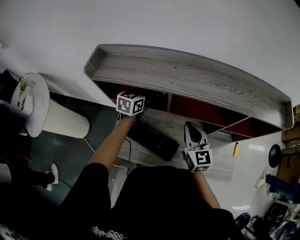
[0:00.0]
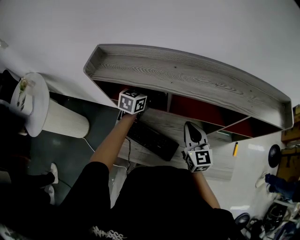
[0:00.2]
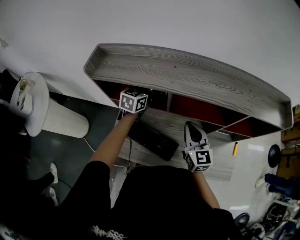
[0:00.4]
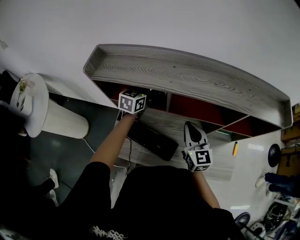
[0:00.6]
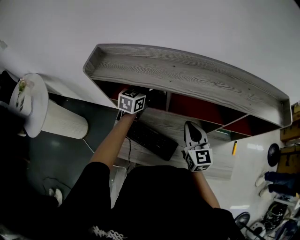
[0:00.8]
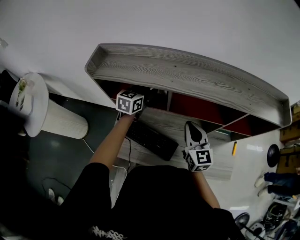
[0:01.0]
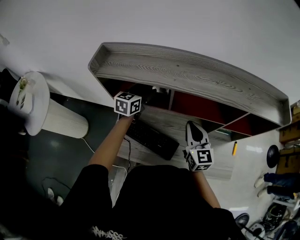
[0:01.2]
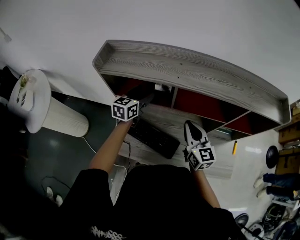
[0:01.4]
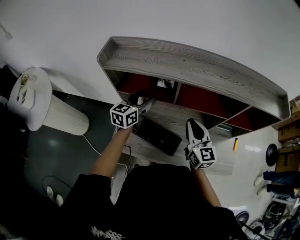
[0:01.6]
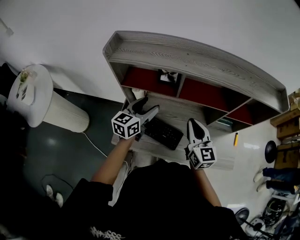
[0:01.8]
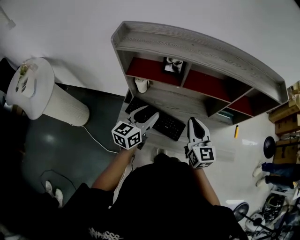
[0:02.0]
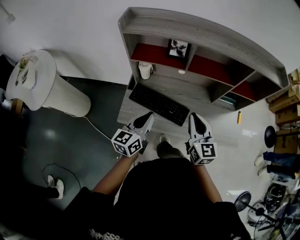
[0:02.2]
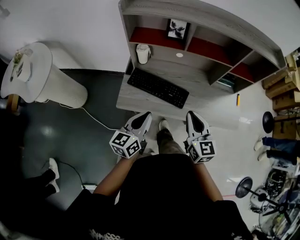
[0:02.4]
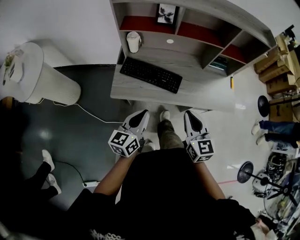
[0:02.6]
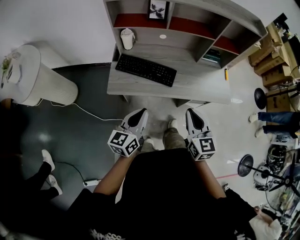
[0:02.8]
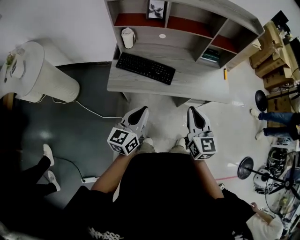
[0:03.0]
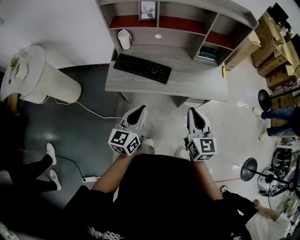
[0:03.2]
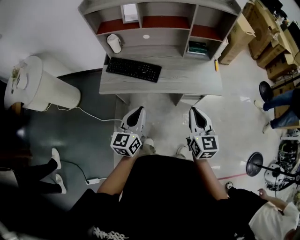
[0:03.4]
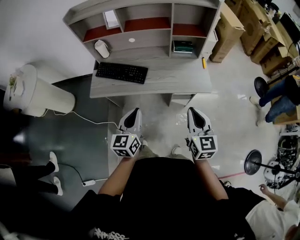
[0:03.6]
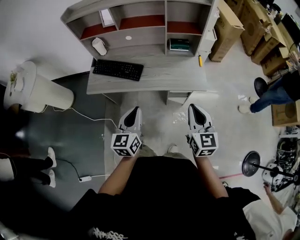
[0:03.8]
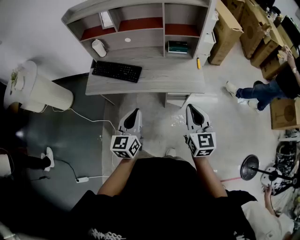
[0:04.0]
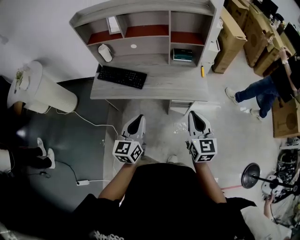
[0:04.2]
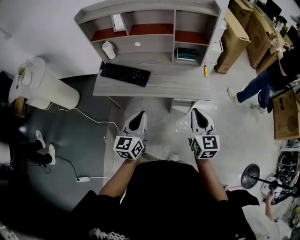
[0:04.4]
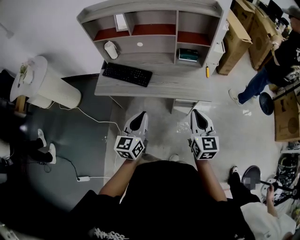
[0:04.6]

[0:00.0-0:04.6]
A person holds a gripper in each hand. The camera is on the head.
0:00.0 to 0:01.6: The left gripper goes about 10 cm backward.
0:01.6 to 0:03.0: Both grippers travel together backward, roughly 40 cm. The left gripper closes up.
0:03.0 to 0:04.6: The two grippers go some 25 cm to the right.

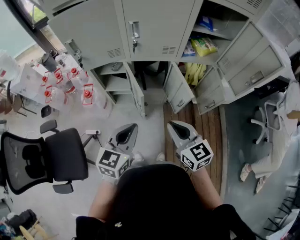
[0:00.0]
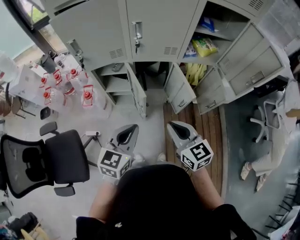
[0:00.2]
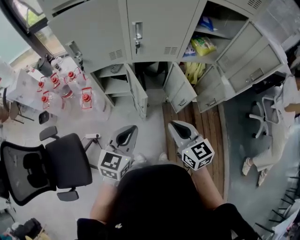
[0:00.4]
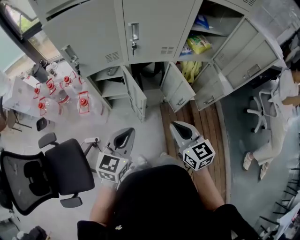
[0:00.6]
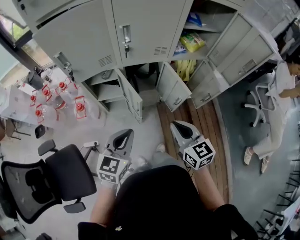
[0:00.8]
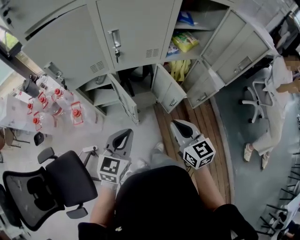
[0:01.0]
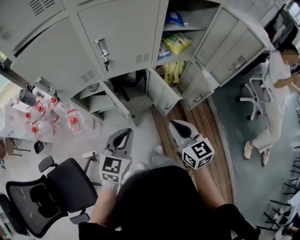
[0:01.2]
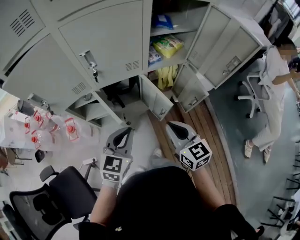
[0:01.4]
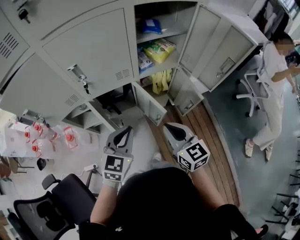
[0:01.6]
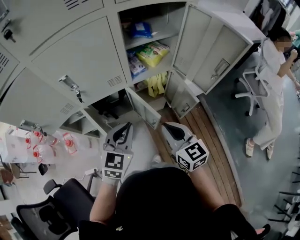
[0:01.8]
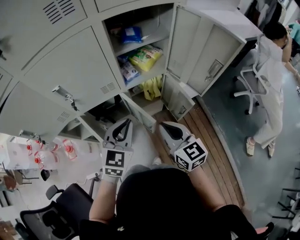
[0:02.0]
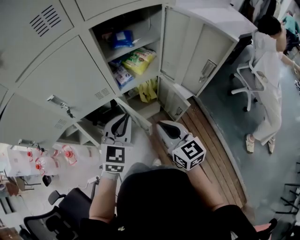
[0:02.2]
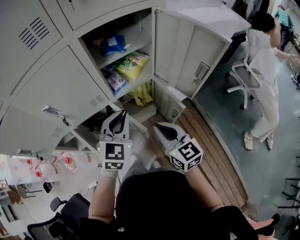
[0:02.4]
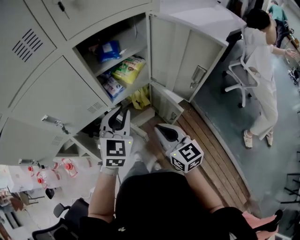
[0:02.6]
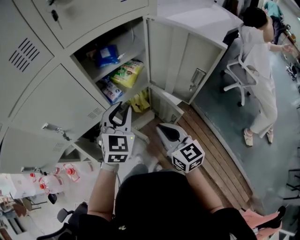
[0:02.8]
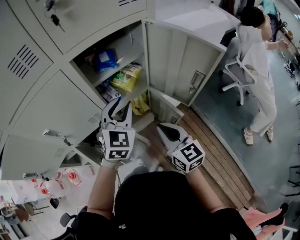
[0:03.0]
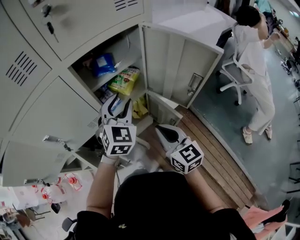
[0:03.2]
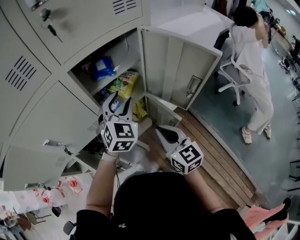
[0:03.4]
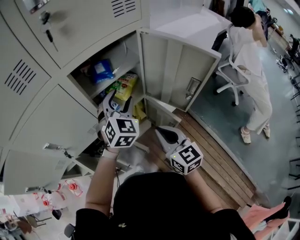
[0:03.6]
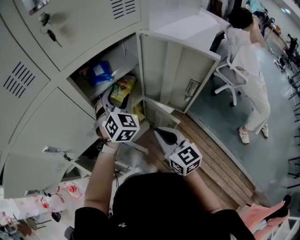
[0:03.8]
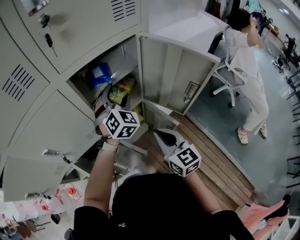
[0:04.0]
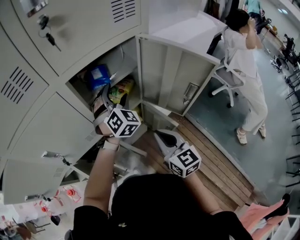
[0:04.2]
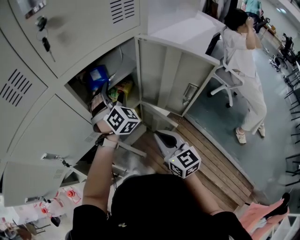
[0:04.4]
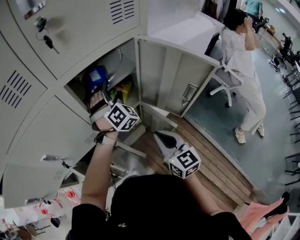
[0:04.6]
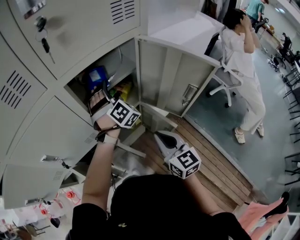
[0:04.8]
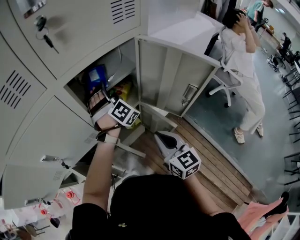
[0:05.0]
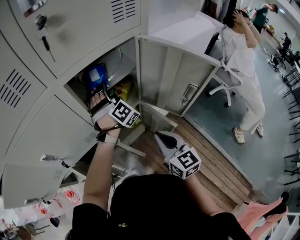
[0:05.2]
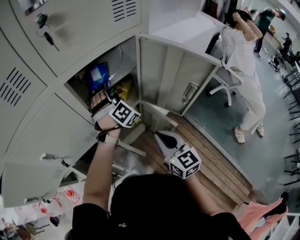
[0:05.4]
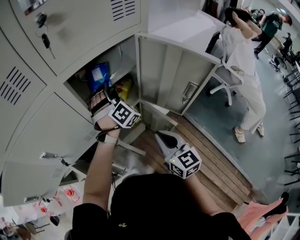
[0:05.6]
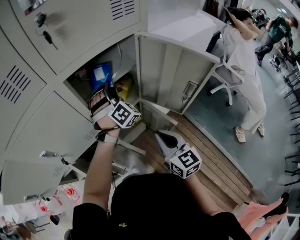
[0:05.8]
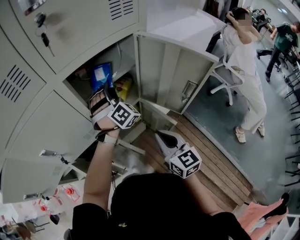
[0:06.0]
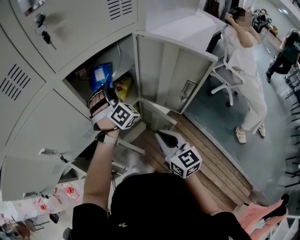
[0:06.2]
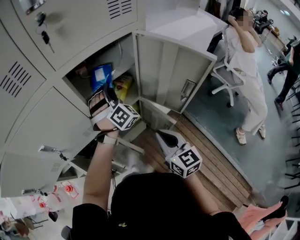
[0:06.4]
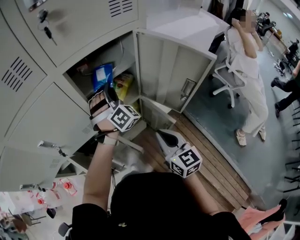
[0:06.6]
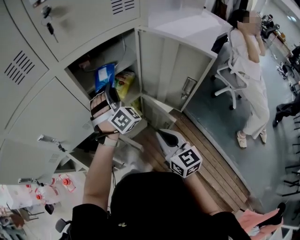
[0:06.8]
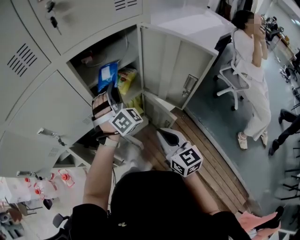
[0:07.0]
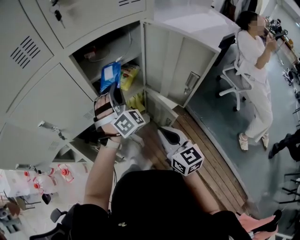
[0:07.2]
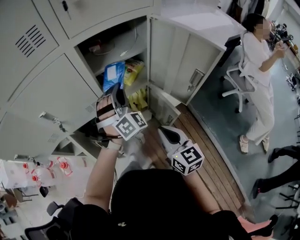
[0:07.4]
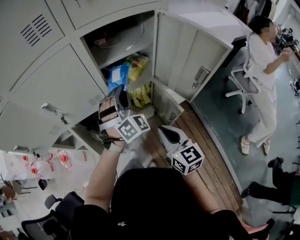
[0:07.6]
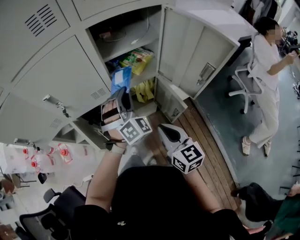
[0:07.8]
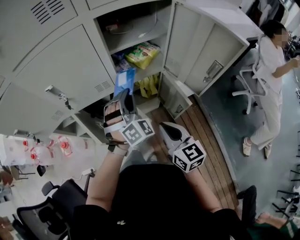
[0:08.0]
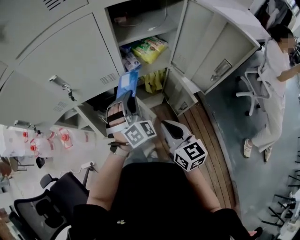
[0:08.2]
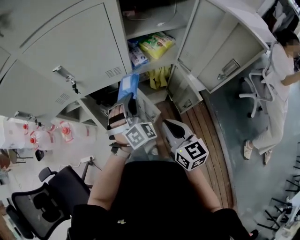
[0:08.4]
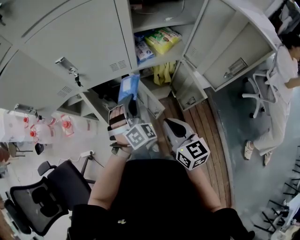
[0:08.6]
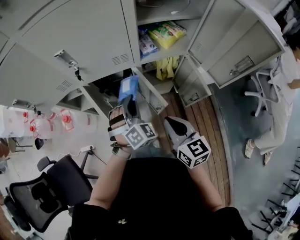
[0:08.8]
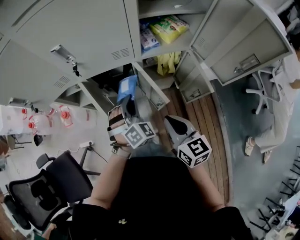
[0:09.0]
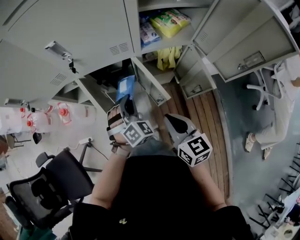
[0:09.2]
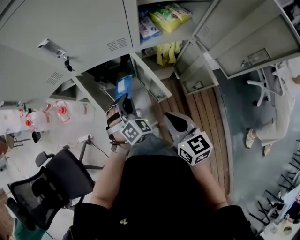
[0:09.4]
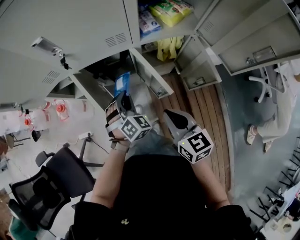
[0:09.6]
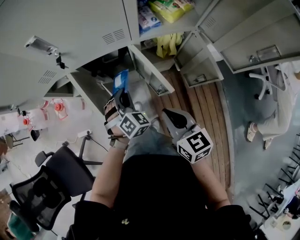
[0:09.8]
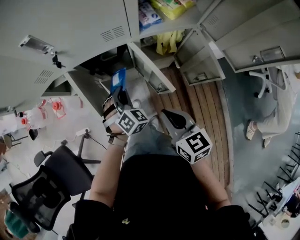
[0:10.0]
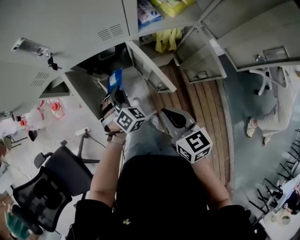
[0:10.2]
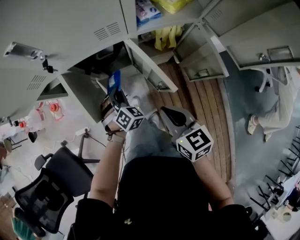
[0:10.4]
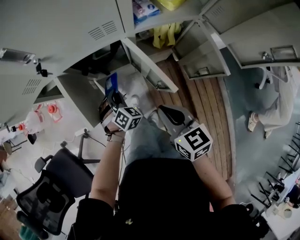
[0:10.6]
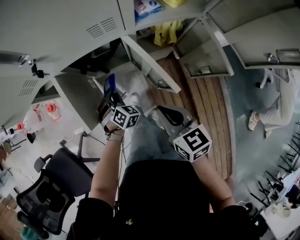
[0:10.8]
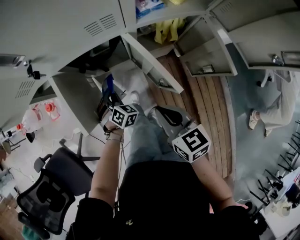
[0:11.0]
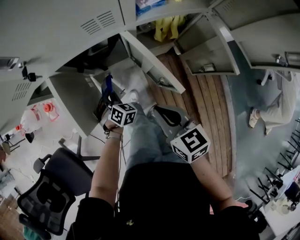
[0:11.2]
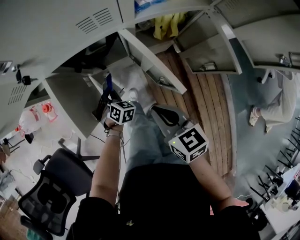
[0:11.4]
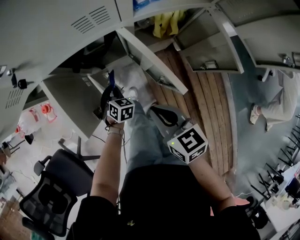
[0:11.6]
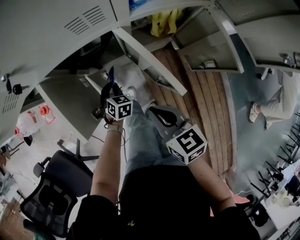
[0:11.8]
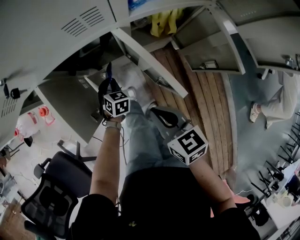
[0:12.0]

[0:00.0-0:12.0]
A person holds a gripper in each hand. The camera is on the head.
0:00.0 to 0:01.6: The two grippers go some 15 cm forward and to the right. The left gripper changes its angle by roughly 20 degrees.
0:01.6 to 0:03.0: The right gripper heads forward and to the right, covering approximately 15 cm; the left gripper goes some 25 cm forward and to the right.
0:03.0 to 0:04.4: The left gripper shifts roughly 15 cm forward, turns by approximately 30 degrees, and opens up.
0:04.4 to 0:06.0: The left gripper closes up.
0:06.0 to 0:07.6: The right gripper travels backward by roughly 5 cm. Meanwhile the left gripper shifts some 15 cm backward.
0:07.6 to 0:09.0: The left gripper goes some 25 cm downward, to the left and backward, and turns by about 20 degrees. The right gripper is displaced to the left and downward by about 15 cm.
0:09.0 to 0:10.4: The left gripper heads downward, covering some 20 cm, while the right gripper travels downward by approximately 10 cm.
0:10.4 to 0:12.0: The right gripper travels downward by roughly 10 cm. Meanwhile the left gripper shifts roughly 15 cm downward, and swivels some 30 degrees.

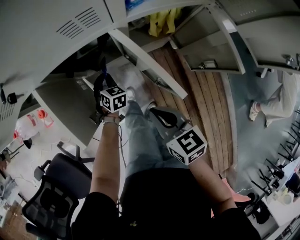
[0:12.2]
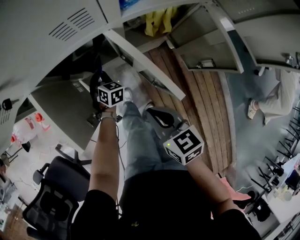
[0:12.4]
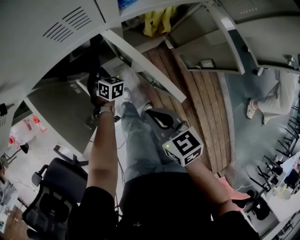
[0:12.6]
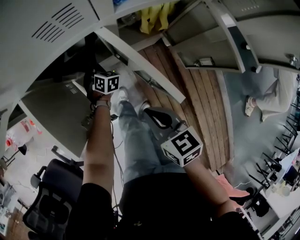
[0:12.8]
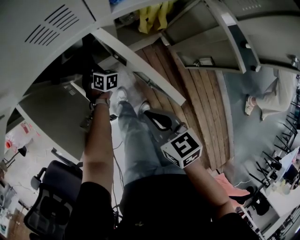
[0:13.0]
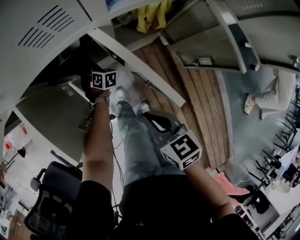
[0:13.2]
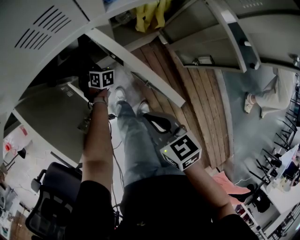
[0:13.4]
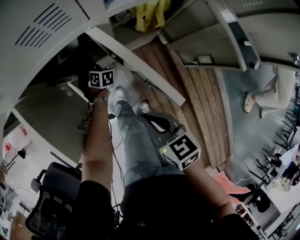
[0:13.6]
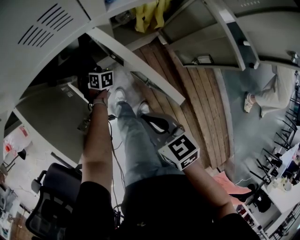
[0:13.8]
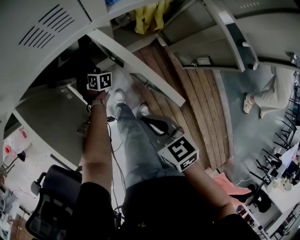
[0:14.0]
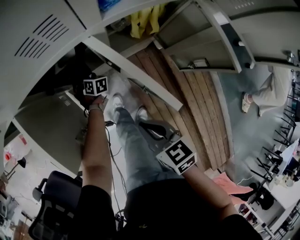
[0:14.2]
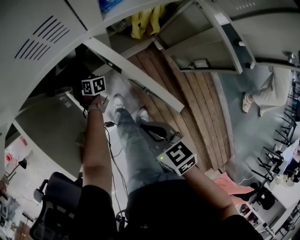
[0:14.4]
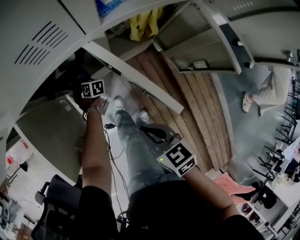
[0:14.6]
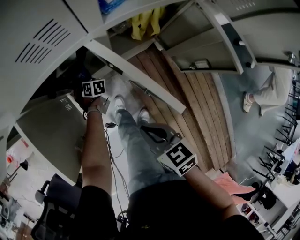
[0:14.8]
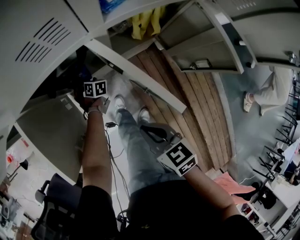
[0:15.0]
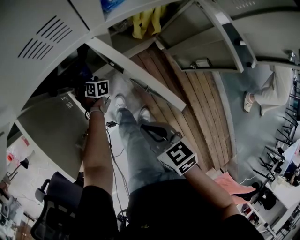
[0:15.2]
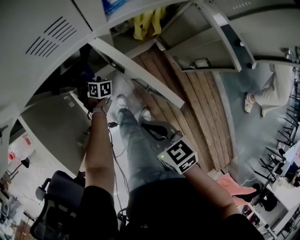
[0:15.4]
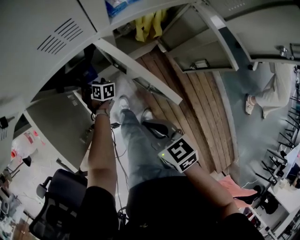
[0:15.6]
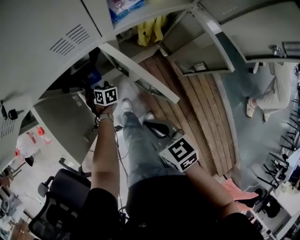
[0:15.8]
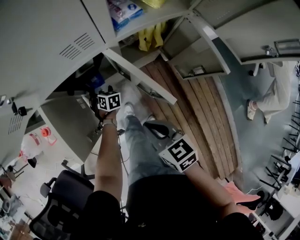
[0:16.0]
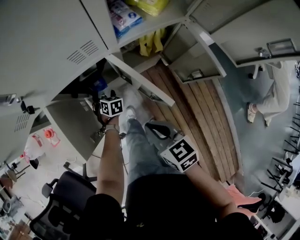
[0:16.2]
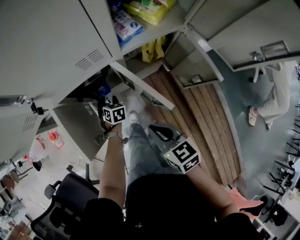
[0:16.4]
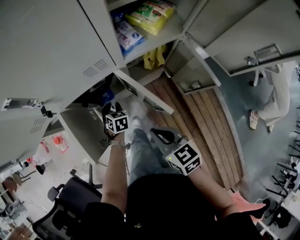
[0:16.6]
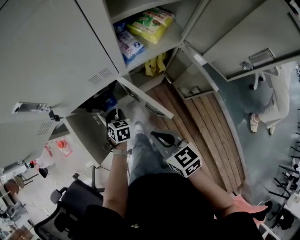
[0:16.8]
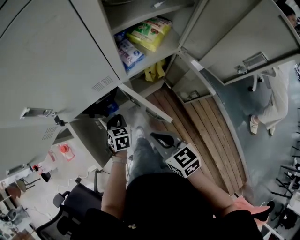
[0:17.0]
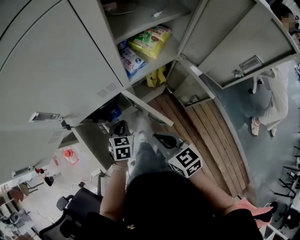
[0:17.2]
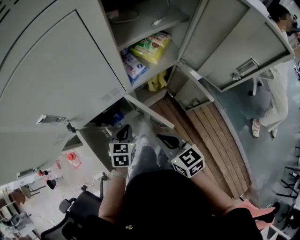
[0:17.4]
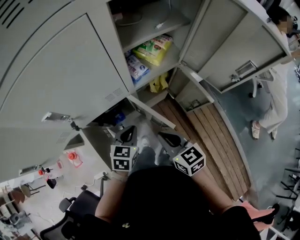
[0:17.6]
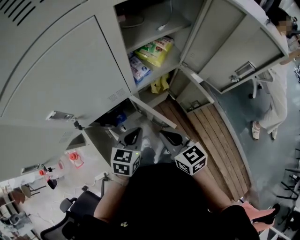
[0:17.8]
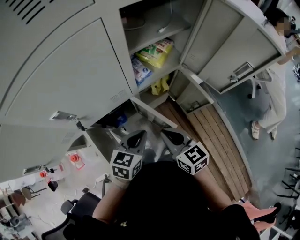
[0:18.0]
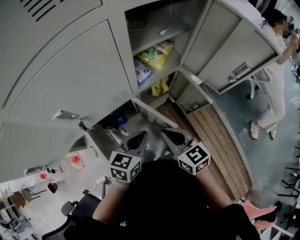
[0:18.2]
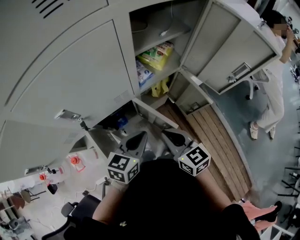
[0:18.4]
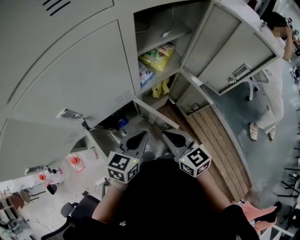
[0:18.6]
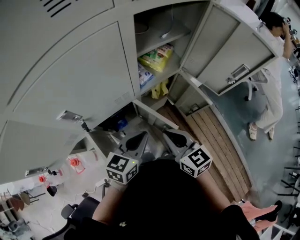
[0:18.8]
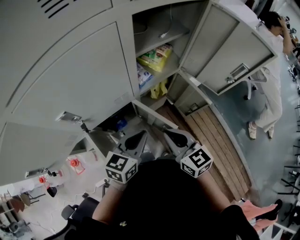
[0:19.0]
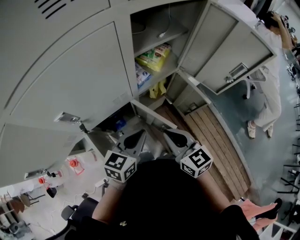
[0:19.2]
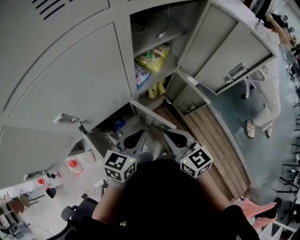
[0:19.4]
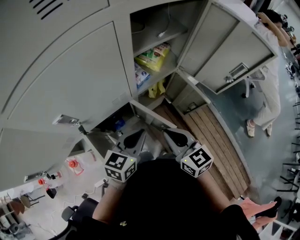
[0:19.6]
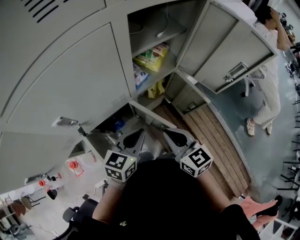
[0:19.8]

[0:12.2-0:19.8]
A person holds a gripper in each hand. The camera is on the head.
0:12.2 to 0:13.8: The left gripper goes roughly 15 cm downward and forward, and opens.
0:13.8 to 0:15.2: The grippers move only a little.
0:15.2 to 0:16.8: The left gripper is displaced upward by about 25 cm, rotates some 20 degrees, and closes. Meanwhile the right gripper is displaced upward by some 15 cm.
0:16.8 to 0:18.2: The right gripper goes approximately 10 cm upward. The left gripper heads upward, covering roughly 25 cm, and turns by approximately 40 degrees.
0:18.2 to 0:19.8: There are only small adjustments of the grippers.
